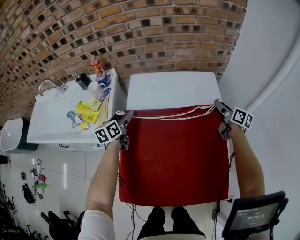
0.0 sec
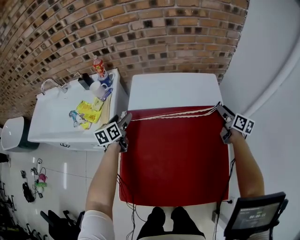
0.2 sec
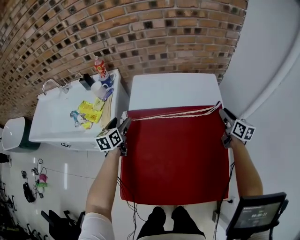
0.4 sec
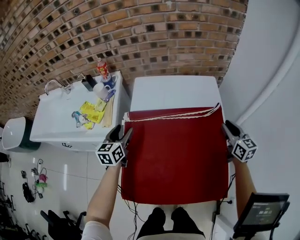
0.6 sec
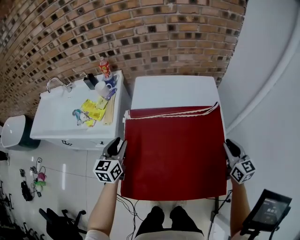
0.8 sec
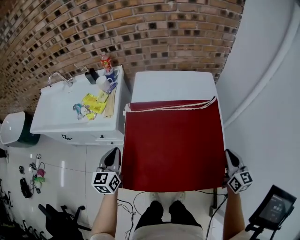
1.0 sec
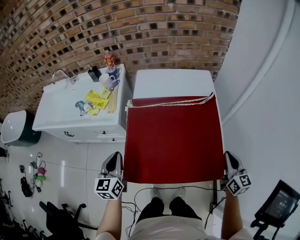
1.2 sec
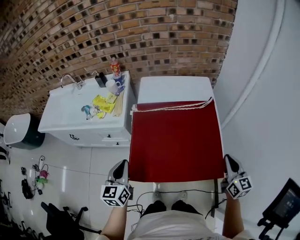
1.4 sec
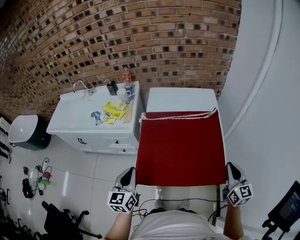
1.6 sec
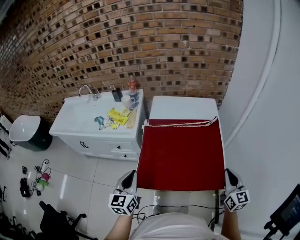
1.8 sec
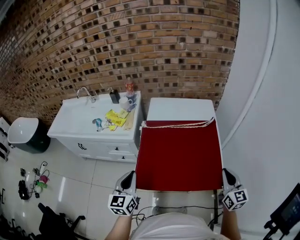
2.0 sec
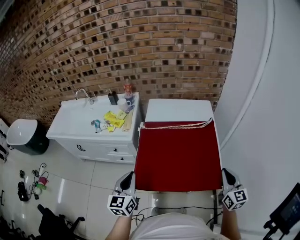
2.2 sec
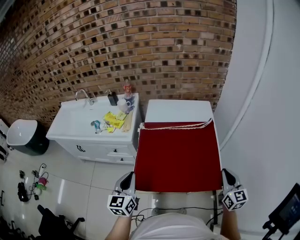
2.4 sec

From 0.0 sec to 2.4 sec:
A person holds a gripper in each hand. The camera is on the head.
From 0.0 sec to 1.2 sec: The grippers both shift backward by about 35 cm. The left gripper turns by approximately 20 degrees, and closes its fingers. Meanwhile the right gripper swivels approximately 30 degrees, and closes up.
From 1.2 sec to 2.4 sec: The right gripper heads upward and backward, covering roughly 10 cm; the left gripper is displaced backward and upward by roughly 10 cm.

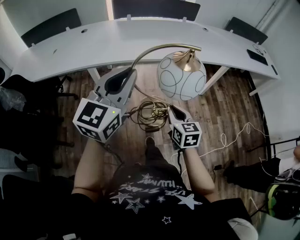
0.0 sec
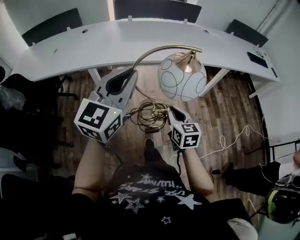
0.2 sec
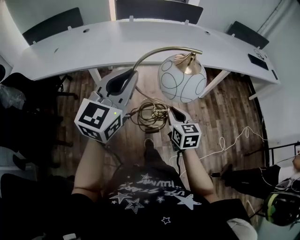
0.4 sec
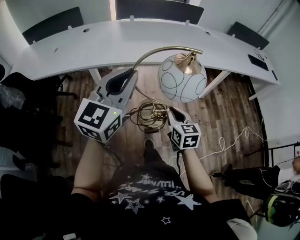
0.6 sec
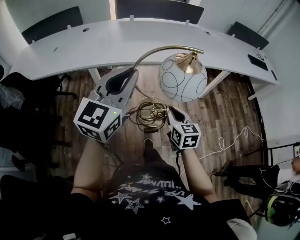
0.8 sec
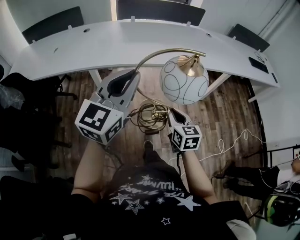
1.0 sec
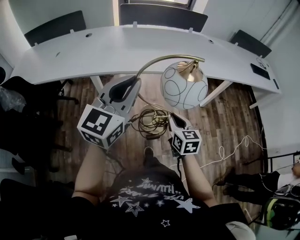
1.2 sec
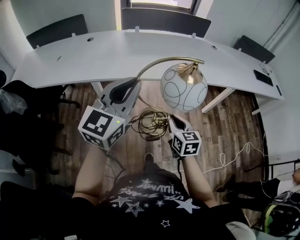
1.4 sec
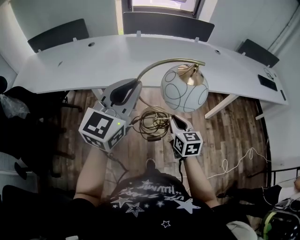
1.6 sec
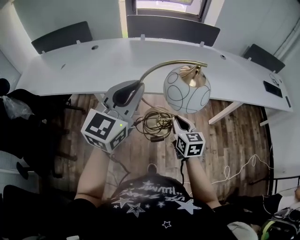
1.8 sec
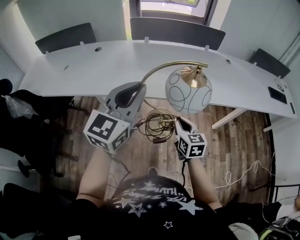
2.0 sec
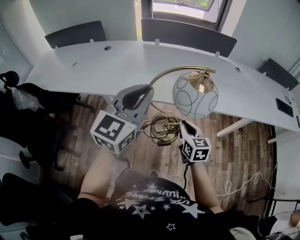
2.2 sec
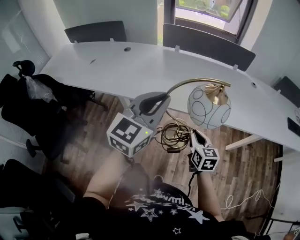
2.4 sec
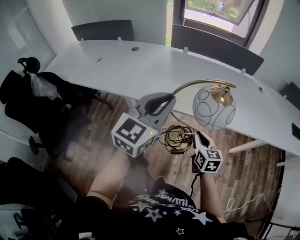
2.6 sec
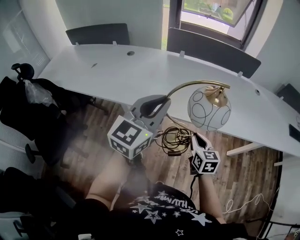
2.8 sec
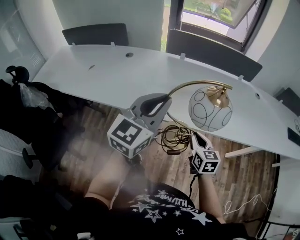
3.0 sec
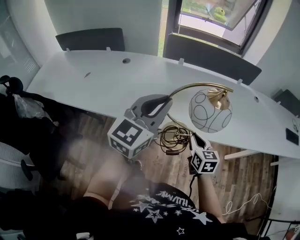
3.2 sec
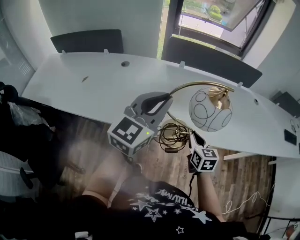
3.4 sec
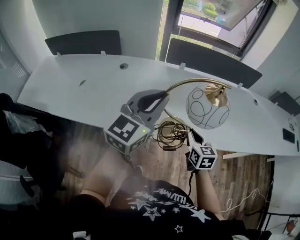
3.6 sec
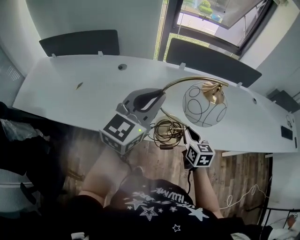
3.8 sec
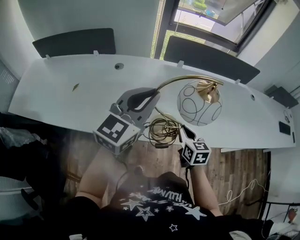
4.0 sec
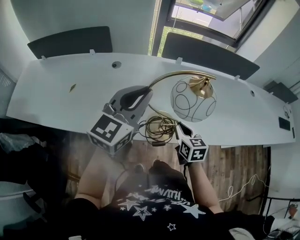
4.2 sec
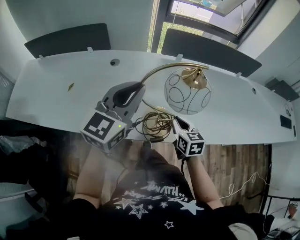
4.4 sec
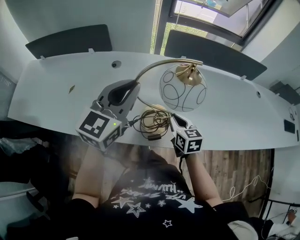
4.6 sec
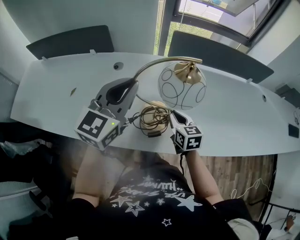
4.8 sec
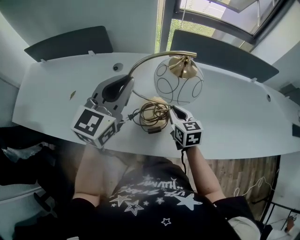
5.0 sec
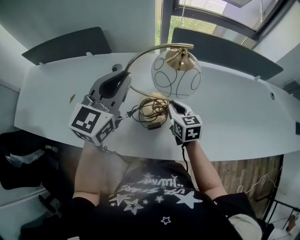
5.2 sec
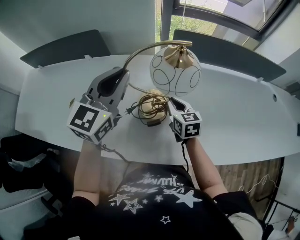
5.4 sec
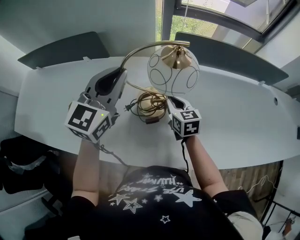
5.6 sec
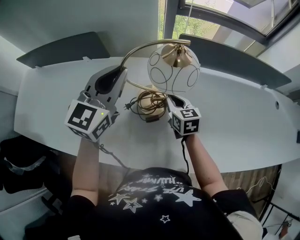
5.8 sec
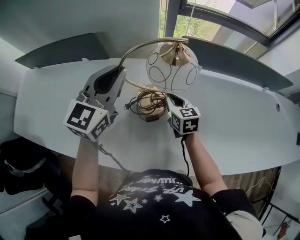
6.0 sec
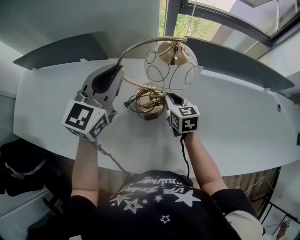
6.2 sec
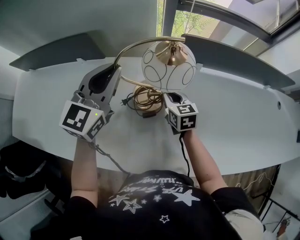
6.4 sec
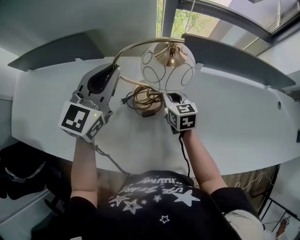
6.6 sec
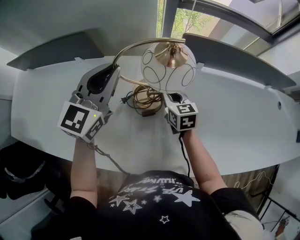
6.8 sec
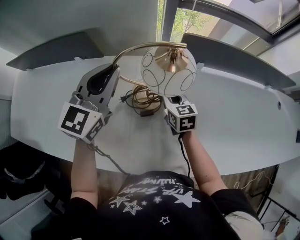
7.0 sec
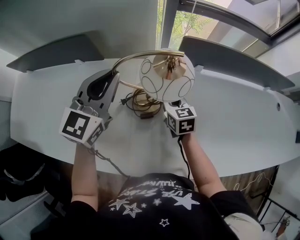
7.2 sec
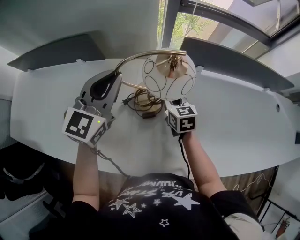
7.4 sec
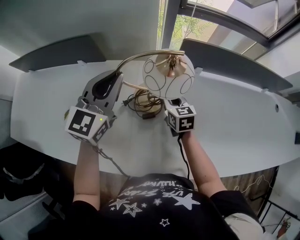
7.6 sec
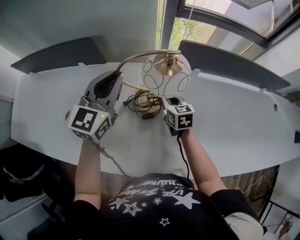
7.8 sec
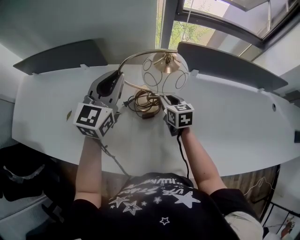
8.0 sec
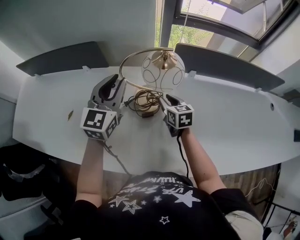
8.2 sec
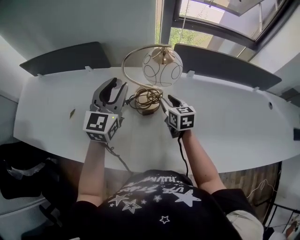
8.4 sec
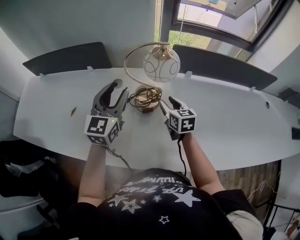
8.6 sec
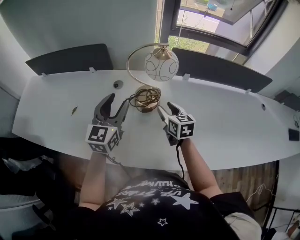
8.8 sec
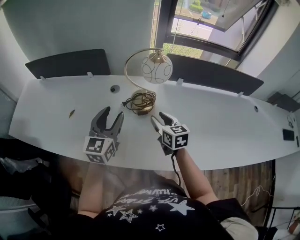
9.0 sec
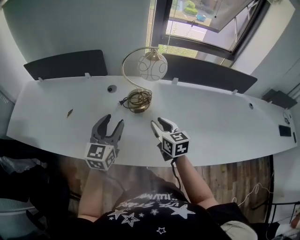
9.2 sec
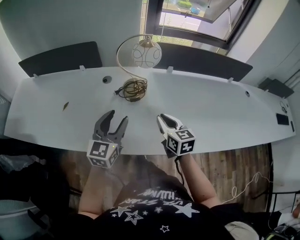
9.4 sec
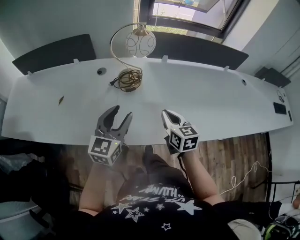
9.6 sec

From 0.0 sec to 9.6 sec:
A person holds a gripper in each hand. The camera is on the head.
From 0.0 sec to 1.6 sec: The grippers move only a little.
From 1.6 sec to 3.2 sec: The two grippers go some 35 cm forward.
From 3.2 sec to 4.8 sec: The grippers both shift to the left and forward by some 30 cm.
From 4.8 sec to 6.4 sec: Both grippers travel together forward, about 20 cm.
From 6.4 sec to 8.0 sec: There are only small adjustments of the grippers.
From 8.0 sec to 9.6 sec: The two grippers go some 30 cm backward. The right gripper opens, then closes again. Meanwhile the left gripper opens its fingers.

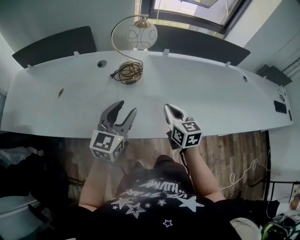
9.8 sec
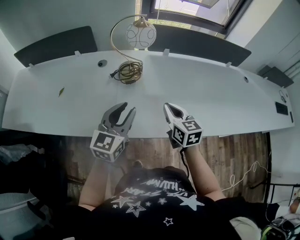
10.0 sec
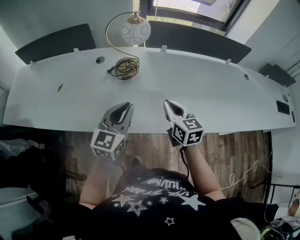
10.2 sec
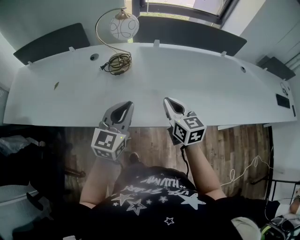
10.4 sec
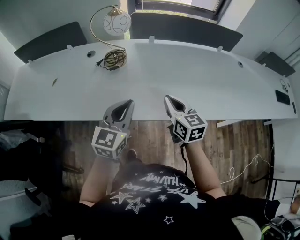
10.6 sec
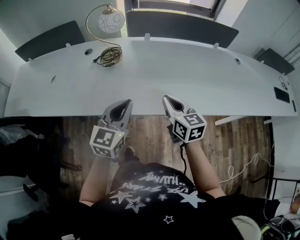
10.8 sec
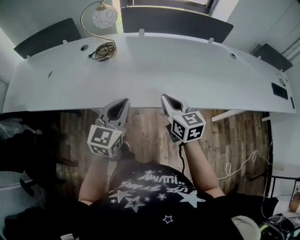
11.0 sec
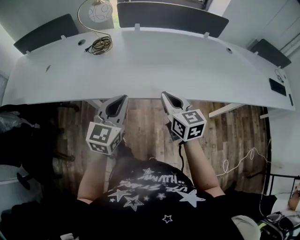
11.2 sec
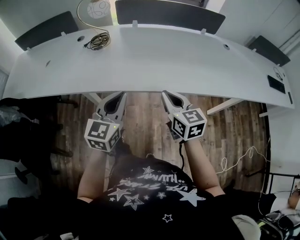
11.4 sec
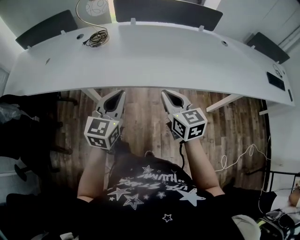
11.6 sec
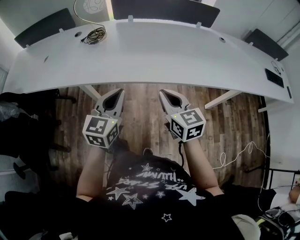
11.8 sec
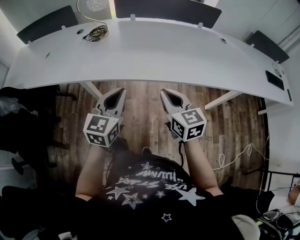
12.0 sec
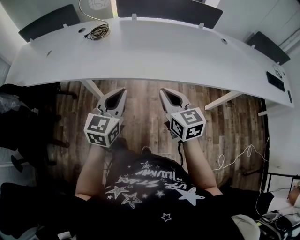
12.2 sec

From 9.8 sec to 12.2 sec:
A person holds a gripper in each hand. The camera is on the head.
From 9.8 sec to 11.0 sec: Both grippers move to the right and backward, approximately 20 cm. The left gripper closes up.
From 11.0 sec to 12.2 sec: The grippers both shift backward and to the right by about 15 cm.

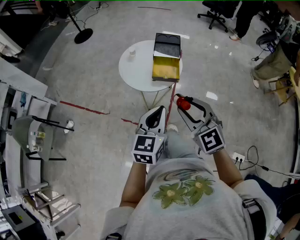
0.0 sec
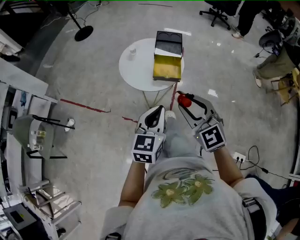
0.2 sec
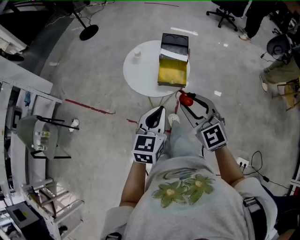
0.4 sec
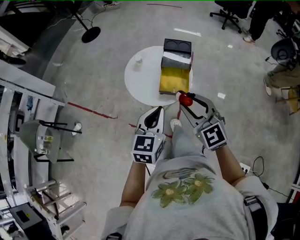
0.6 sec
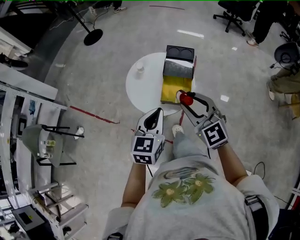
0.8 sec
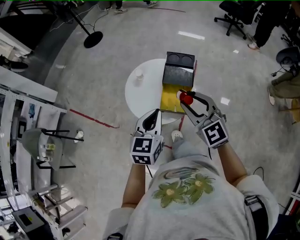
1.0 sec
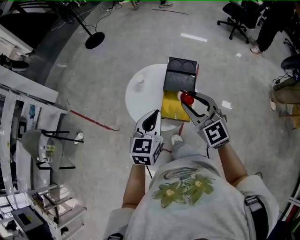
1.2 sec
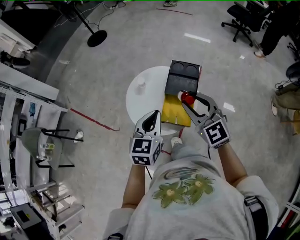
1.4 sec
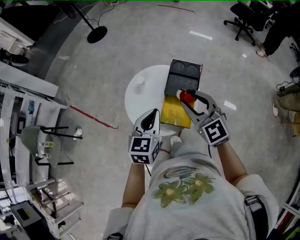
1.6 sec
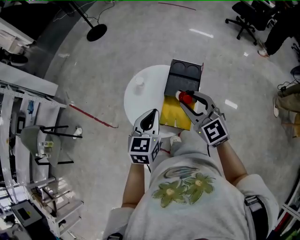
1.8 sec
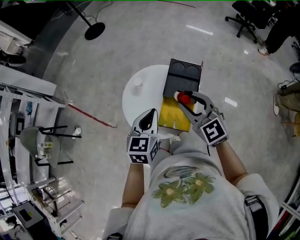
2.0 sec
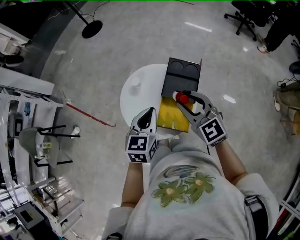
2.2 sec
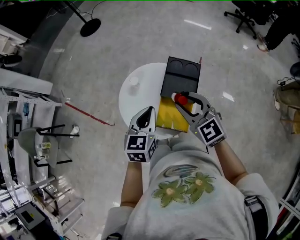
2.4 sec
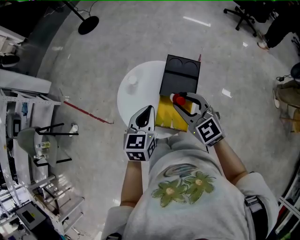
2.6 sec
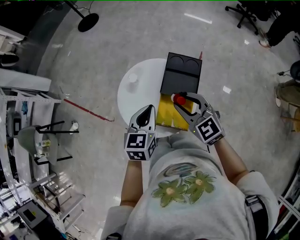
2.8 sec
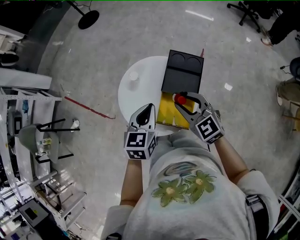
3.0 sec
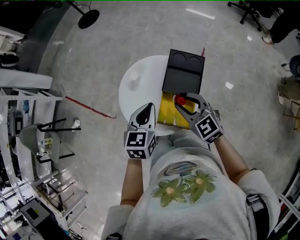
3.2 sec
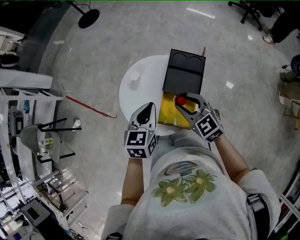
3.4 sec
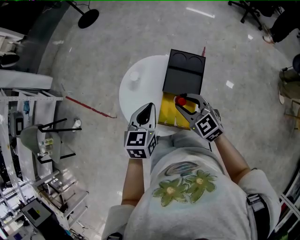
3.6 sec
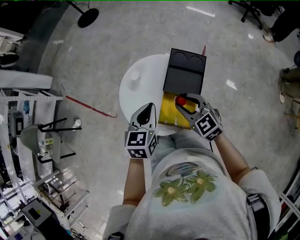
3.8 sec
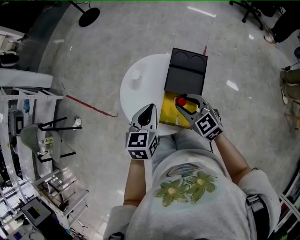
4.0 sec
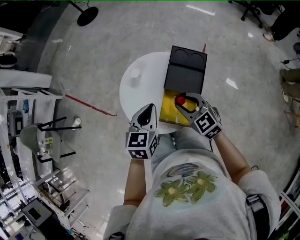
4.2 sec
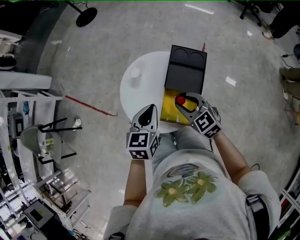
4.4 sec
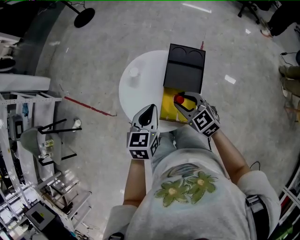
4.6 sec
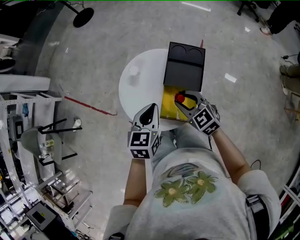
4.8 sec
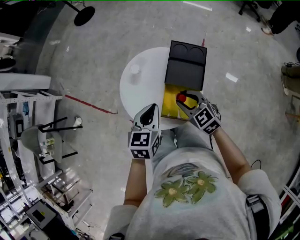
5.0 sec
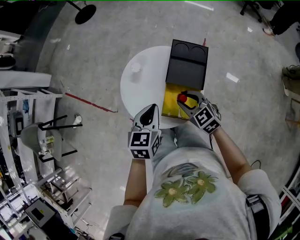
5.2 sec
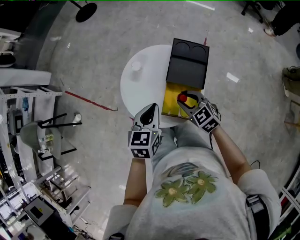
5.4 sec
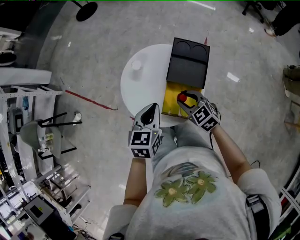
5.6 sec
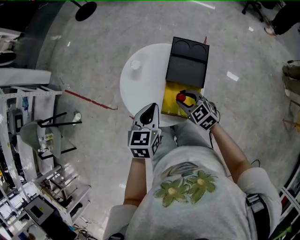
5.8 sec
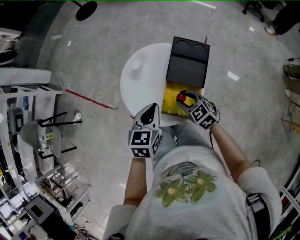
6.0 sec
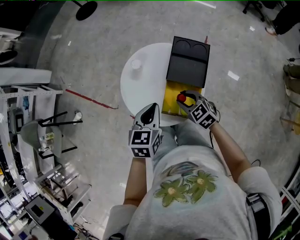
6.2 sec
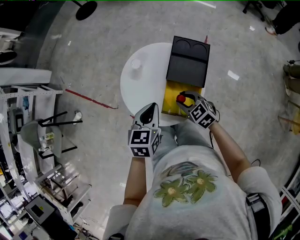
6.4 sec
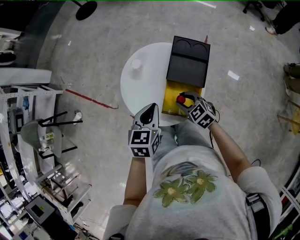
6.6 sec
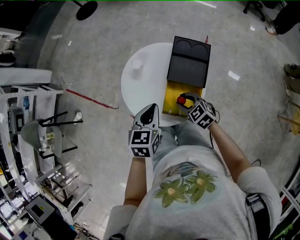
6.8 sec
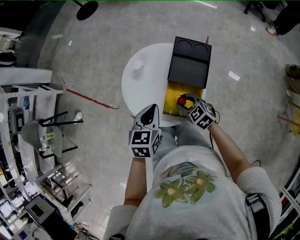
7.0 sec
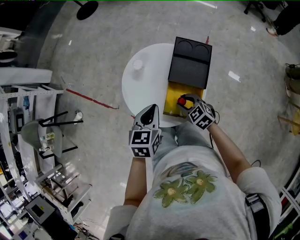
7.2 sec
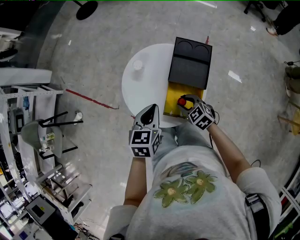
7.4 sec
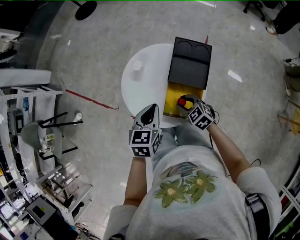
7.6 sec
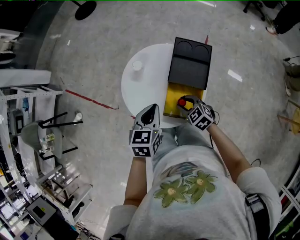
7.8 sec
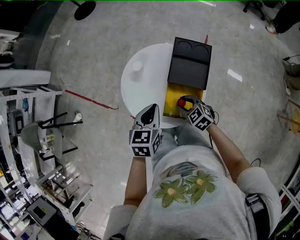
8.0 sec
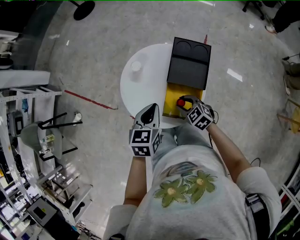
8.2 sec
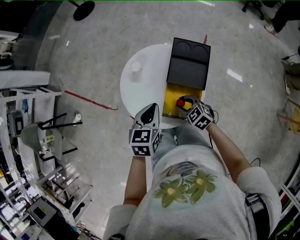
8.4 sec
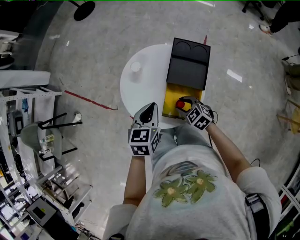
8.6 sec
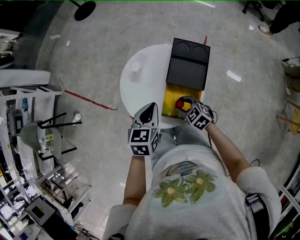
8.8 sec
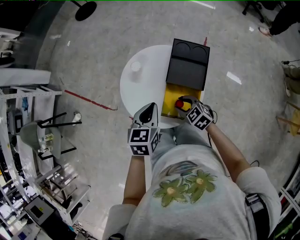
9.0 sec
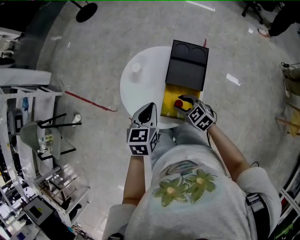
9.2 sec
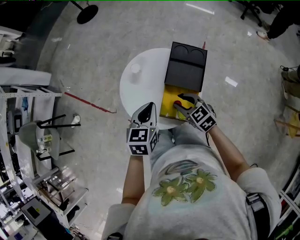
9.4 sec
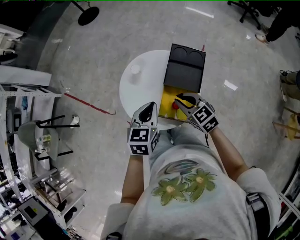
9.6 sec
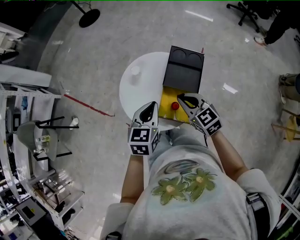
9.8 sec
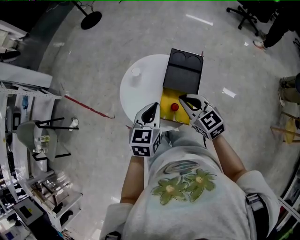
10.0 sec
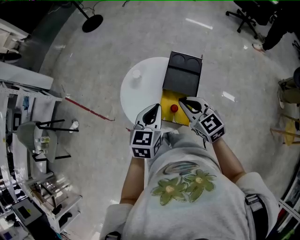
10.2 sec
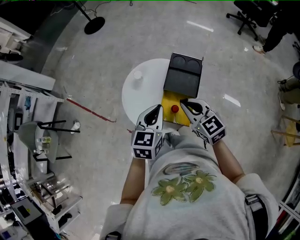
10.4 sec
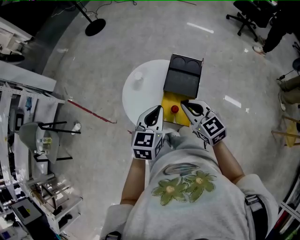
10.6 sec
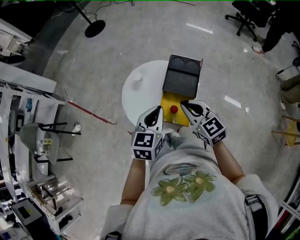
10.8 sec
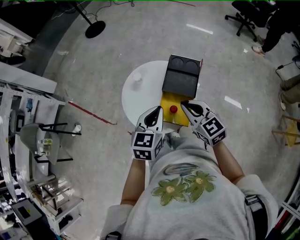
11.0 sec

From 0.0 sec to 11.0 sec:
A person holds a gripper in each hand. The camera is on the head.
From 0.0 sec to 1.6 sec: The grippers both shift forward by approximately 35 cm.
From 1.6 sec to 3.2 sec: The right gripper goes some 15 cm downward and forward. The left gripper travels forward and downward by about 10 cm.
From 3.2 sec to 4.8 sec: The right gripper travels downward by about 5 cm.
From 4.8 sec to 6.2 sec: The right gripper goes approximately 5 cm downward.
From 6.2 sec to 7.8 sec: The right gripper changes place by roughly 5 cm.
From 7.8 sec to 9.4 sec: The right gripper is displaced upward by some 10 cm.
From 9.4 sec to 11.0 sec: The right gripper travels upward by approximately 15 cm, and closes. The left gripper is displaced upward and backward by about 10 cm.
